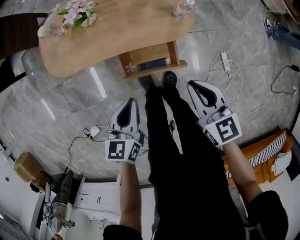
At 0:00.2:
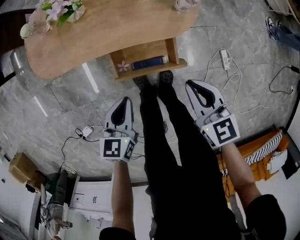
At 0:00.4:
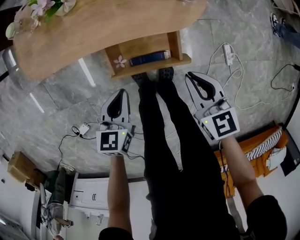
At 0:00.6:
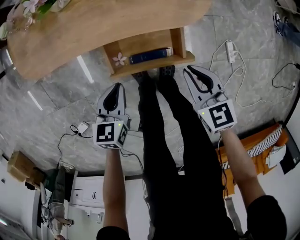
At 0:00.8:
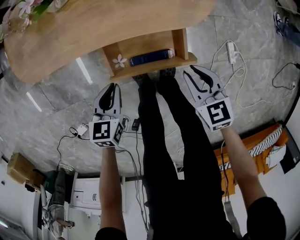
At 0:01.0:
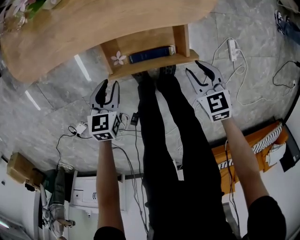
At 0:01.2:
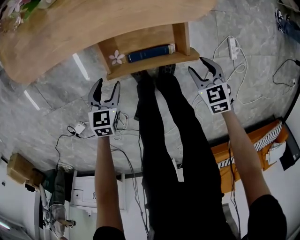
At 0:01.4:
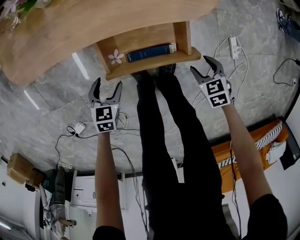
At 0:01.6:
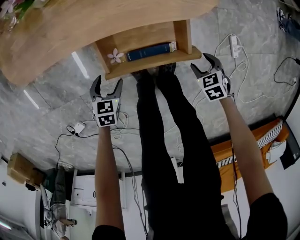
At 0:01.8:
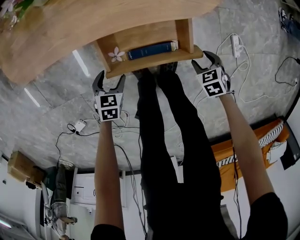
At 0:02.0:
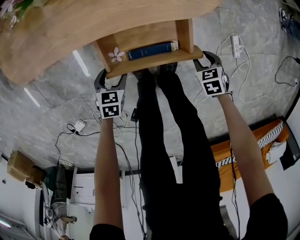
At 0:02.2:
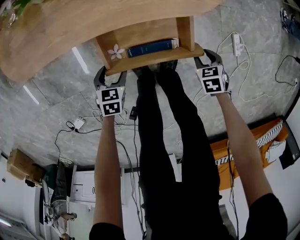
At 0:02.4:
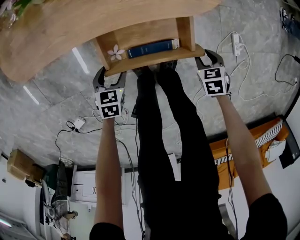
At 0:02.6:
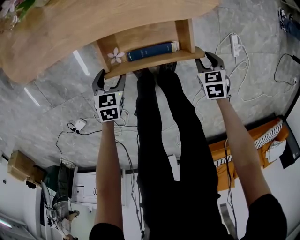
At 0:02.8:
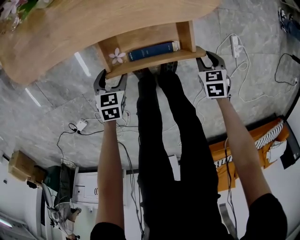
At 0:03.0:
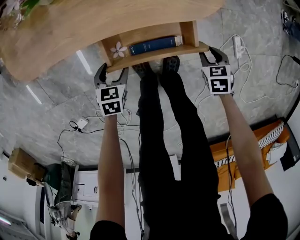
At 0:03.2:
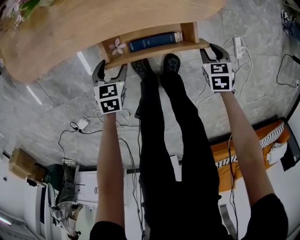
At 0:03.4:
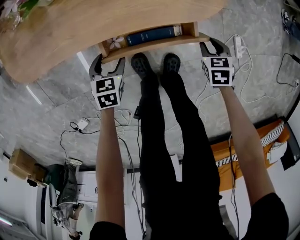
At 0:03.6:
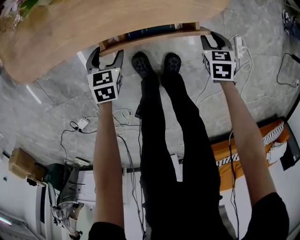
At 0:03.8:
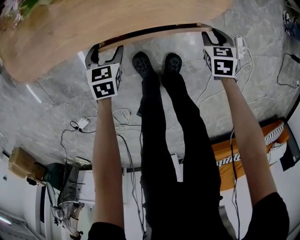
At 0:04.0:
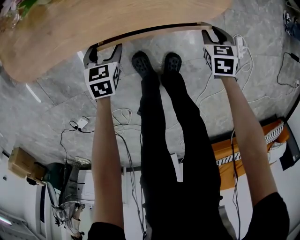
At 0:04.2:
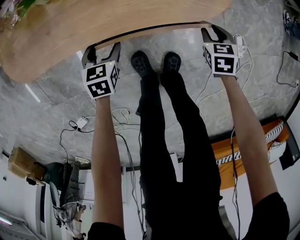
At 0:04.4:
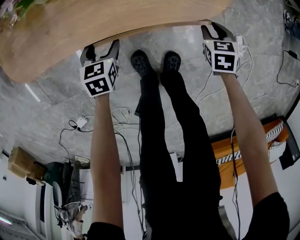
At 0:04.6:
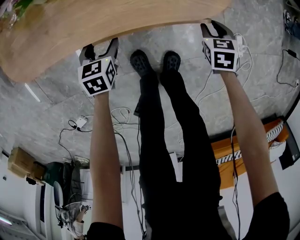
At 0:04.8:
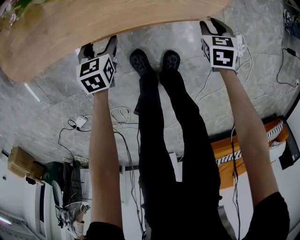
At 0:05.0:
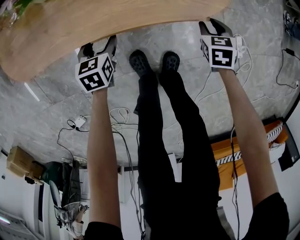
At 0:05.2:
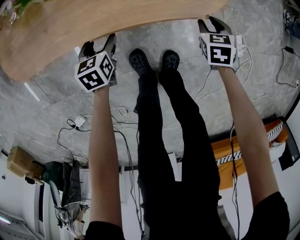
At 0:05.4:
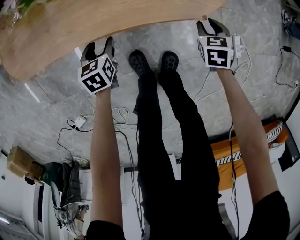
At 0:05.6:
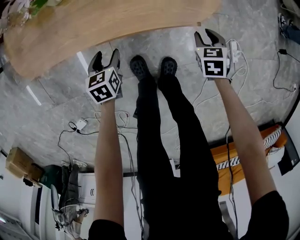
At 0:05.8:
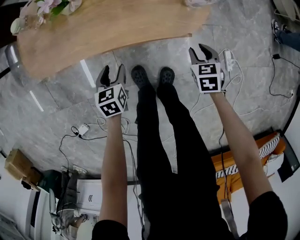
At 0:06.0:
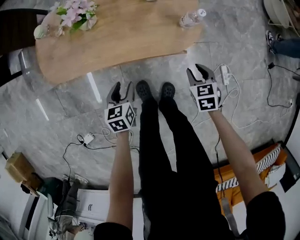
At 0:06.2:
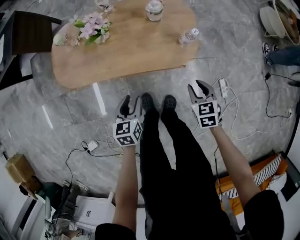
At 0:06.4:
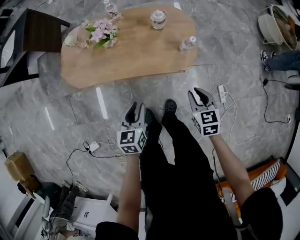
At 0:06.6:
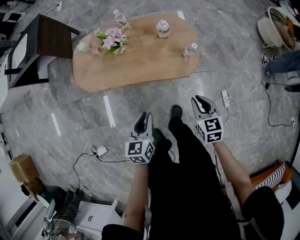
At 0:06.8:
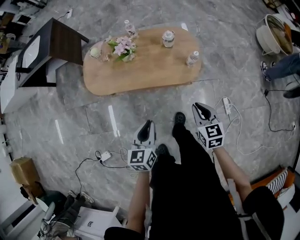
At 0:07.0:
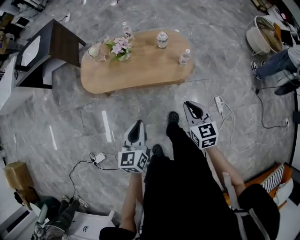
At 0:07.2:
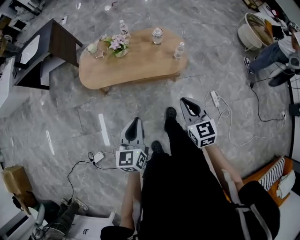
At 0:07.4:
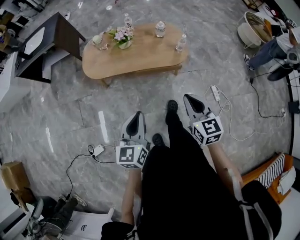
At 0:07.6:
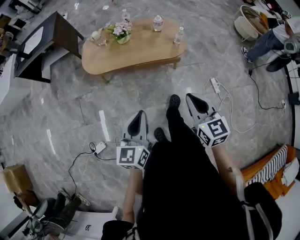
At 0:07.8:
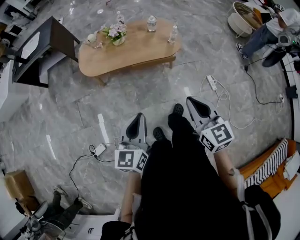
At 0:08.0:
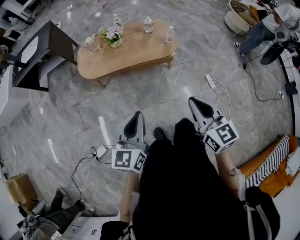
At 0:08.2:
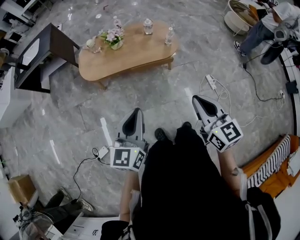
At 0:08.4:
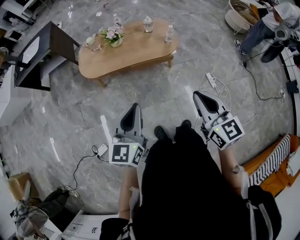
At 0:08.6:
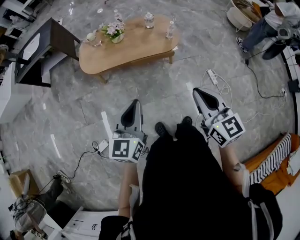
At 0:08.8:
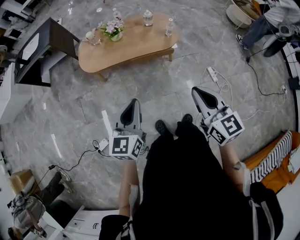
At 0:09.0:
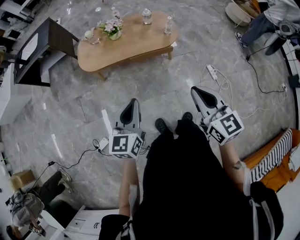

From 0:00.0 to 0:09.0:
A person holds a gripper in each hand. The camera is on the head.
From 0:00.0 to 0:01.6: Both grippers travel together downward, roughly 40 cm. The left gripper rotates approximately 30 degrees, and opens up; the right gripper tips its fingers downward by some 50 degrees, and opens its fingers.
From 0:01.6 to 0:03.0: The left gripper moves approximately 5 cm. The right gripper ends up some 5 cm from where it was.
From 0:03.0 to 0:04.4: The grippers both shift forward by roughly 10 cm.
From 0:04.4 to 0:06.0: The two grippers go some 20 cm upward.
From 0:06.0 to 0:07.6: Both grippers move upward and backward, about 60 cm. The left gripper tips its fingers upward by roughly 40 degrees, and closes its fingers. The right gripper angles its fingers upward, by roughly 40 degrees, and closes its fingers.
From 0:07.6 to 0:09.0: The right gripper heads backward and upward, covering some 10 cm.

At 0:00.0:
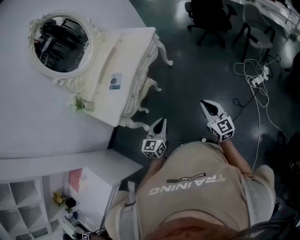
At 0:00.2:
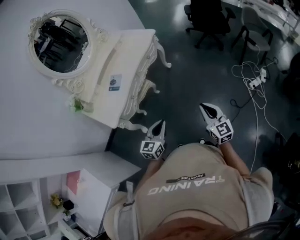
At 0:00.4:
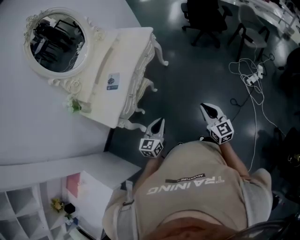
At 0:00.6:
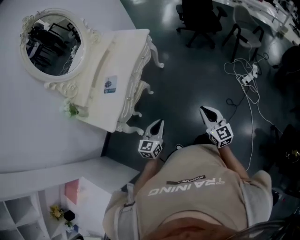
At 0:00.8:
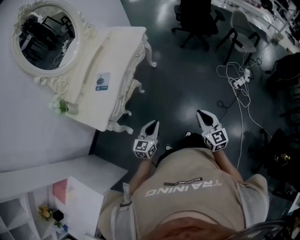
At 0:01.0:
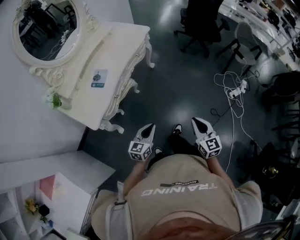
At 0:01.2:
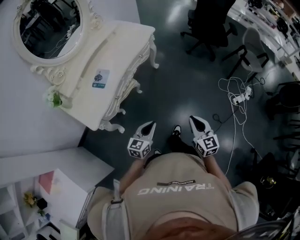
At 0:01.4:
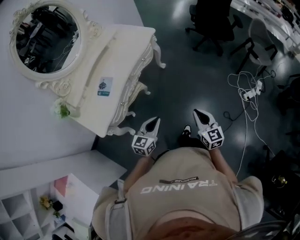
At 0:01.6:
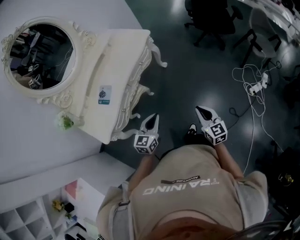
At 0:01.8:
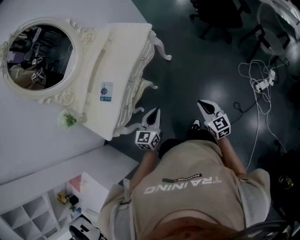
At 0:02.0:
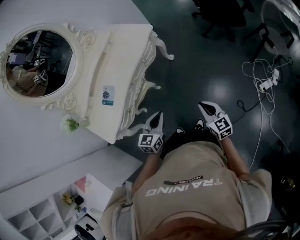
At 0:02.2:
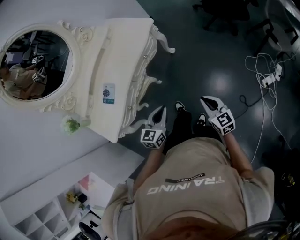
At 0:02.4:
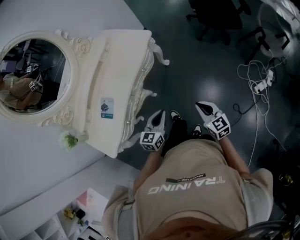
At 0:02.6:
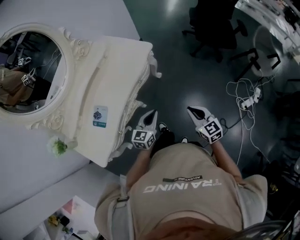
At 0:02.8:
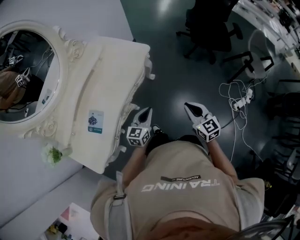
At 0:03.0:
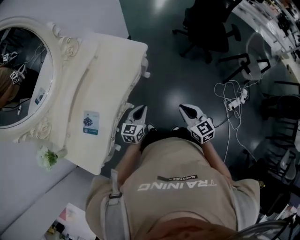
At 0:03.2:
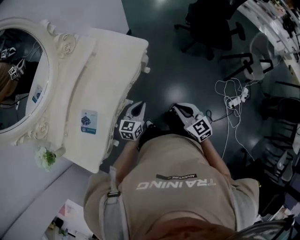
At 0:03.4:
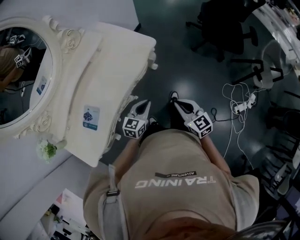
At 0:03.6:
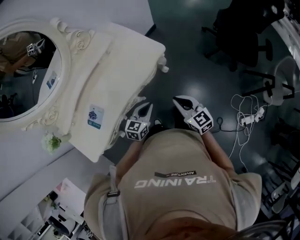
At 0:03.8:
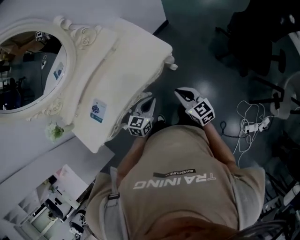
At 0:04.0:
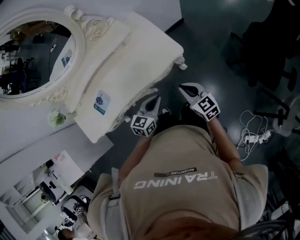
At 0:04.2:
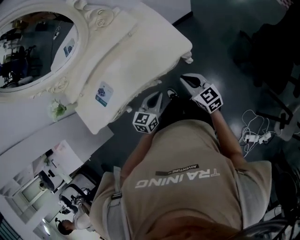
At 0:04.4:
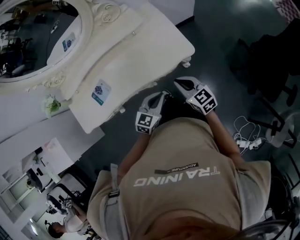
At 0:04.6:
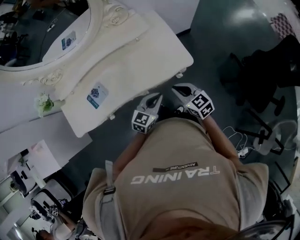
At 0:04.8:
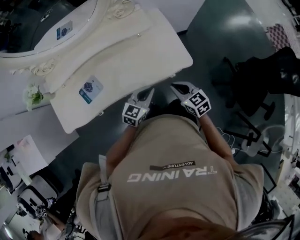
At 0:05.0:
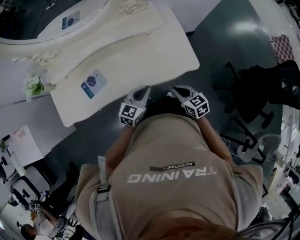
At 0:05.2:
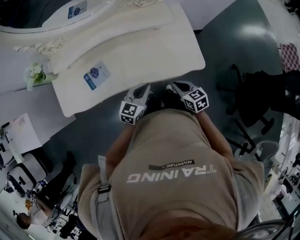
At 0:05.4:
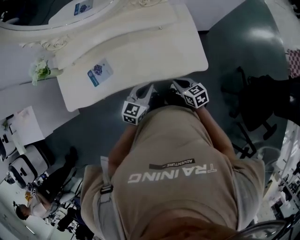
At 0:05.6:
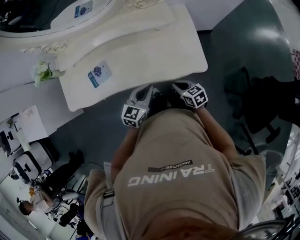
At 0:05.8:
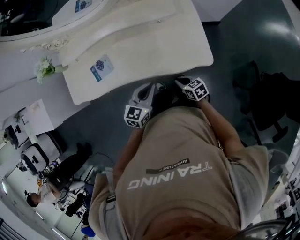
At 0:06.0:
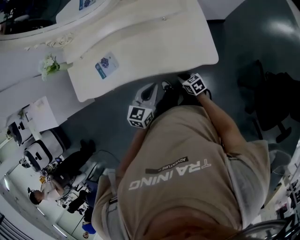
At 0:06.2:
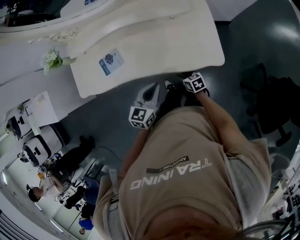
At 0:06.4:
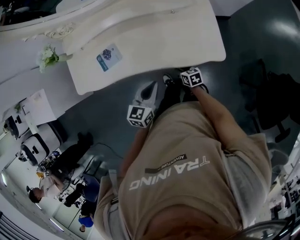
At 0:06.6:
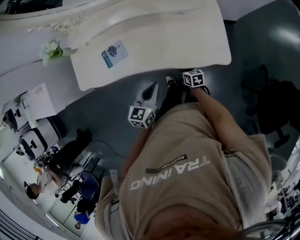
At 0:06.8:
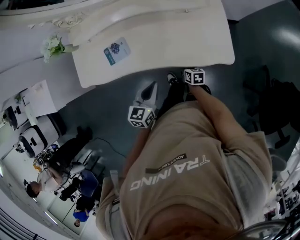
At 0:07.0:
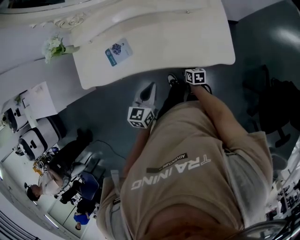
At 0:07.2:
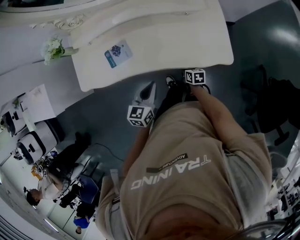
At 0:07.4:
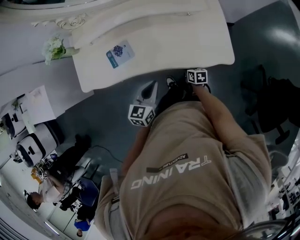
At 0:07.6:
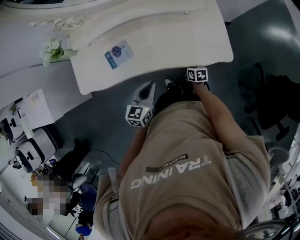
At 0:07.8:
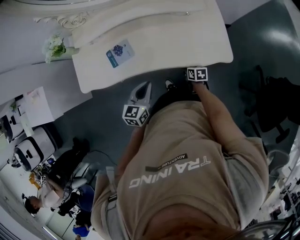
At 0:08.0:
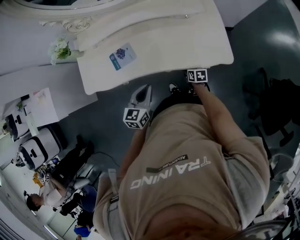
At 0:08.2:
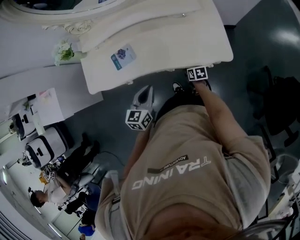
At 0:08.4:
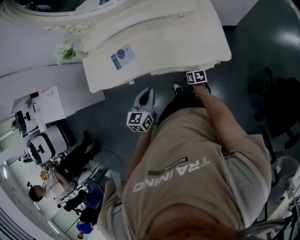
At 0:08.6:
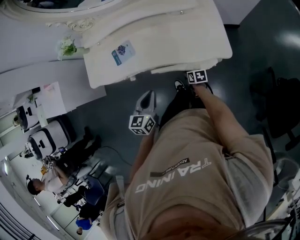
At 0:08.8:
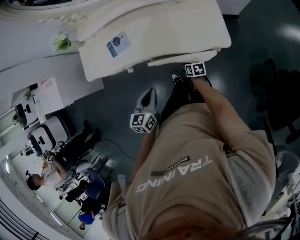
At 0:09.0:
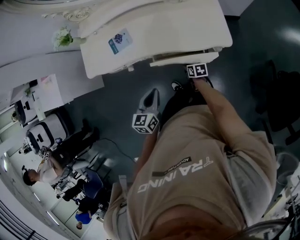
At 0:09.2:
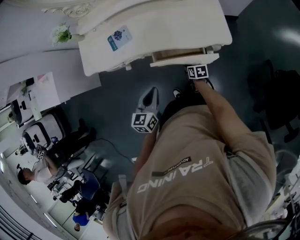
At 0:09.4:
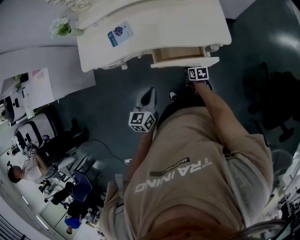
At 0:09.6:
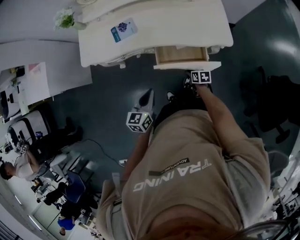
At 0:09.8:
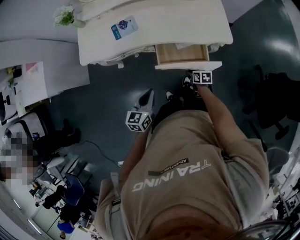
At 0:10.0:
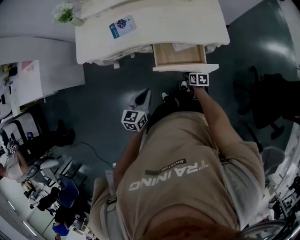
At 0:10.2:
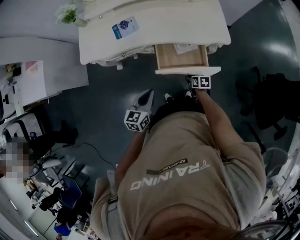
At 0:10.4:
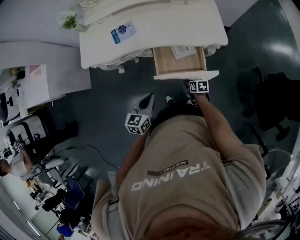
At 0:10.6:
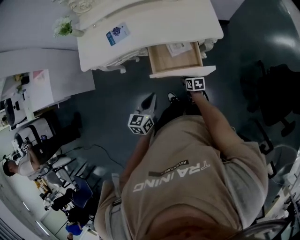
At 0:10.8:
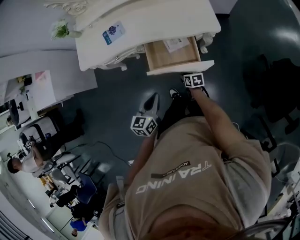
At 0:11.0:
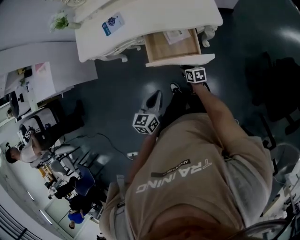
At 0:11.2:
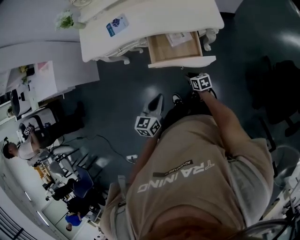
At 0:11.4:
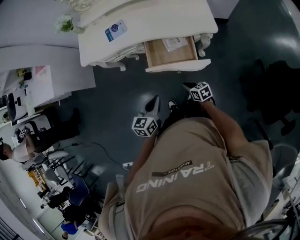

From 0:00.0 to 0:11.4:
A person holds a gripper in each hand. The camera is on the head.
From 0:00.0 to 0:01.4: Both grippers move forward, approximately 15 cm.
From 0:01.4 to 0:02.8: The two grippers go about 35 cm forward.
From 0:02.8 to 0:04.2: The right gripper shifts by approximately 35 cm, and swivels some 40 degrees; the left gripper shifts by some 20 cm, and turns by about 30 degrees.
From 0:04.2 to 0:05.6: The right gripper heads to the left, downward and forward, covering approximately 15 cm, and changes its angle by some 30 degrees. Meanwhile the left gripper goes some 10 cm to the left and forward.
From 0:05.6 to 0:07.2: The left gripper heads to the left, covering about 10 cm. The right gripper heads downward and to the left, covering about 15 cm, turns by about 20 degrees, and opens.
From 0:07.2 to 0:08.6: The two grippers go some 10 cm backward.
From 0:08.6 to 0:10.0: The left gripper travels backward and to the left by about 15 cm, while the right gripper heads backward, covering approximately 15 cm.
From 0:10.0 to 0:11.4: The left gripper shifts approximately 15 cm backward and to the right. Meanwhile the right gripper shifts roughly 15 cm backward and upward, changes its angle by roughly 30 degrees, and closes its fingers.

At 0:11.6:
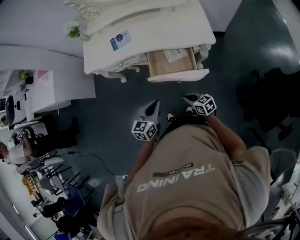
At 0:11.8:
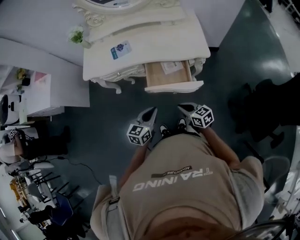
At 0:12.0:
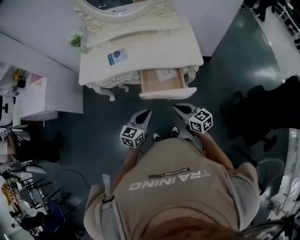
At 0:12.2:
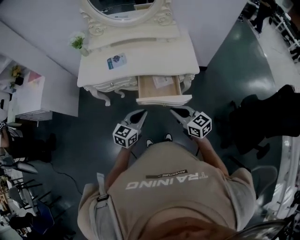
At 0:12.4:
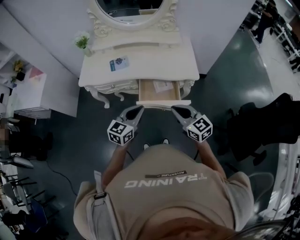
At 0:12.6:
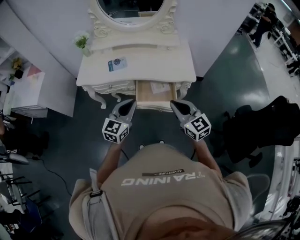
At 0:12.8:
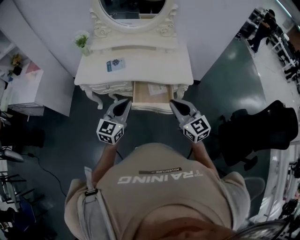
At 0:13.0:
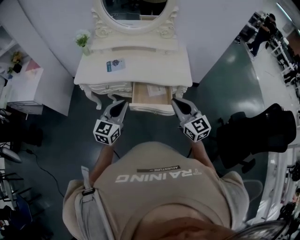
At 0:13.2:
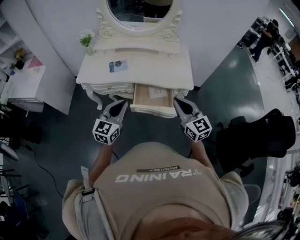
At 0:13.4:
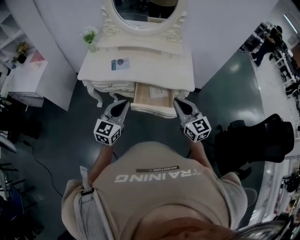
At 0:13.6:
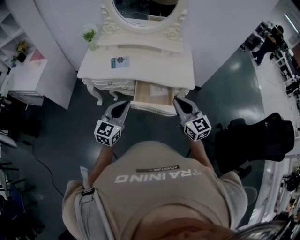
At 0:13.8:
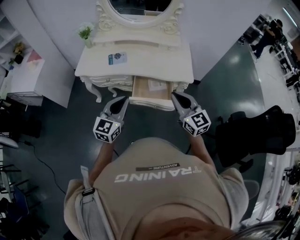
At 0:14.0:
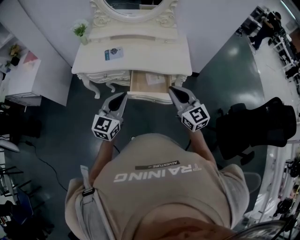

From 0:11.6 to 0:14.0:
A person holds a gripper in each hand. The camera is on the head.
From 0:11.6 to 0:12.8: The right gripper goes roughly 35 cm upward, and swivels roughly 50 degrees, while the left gripper is displaced upward by roughly 20 cm, and turns by roughly 30 degrees.
From 0:12.8 to 0:14.0: The grippers move only a little.
